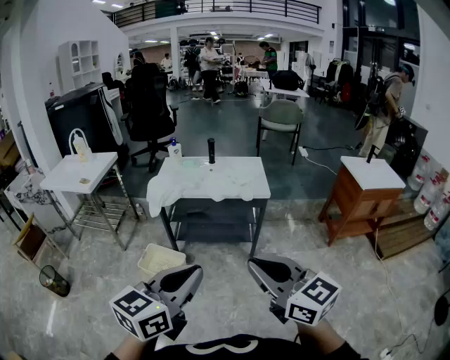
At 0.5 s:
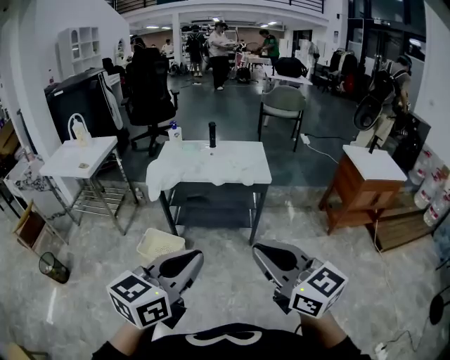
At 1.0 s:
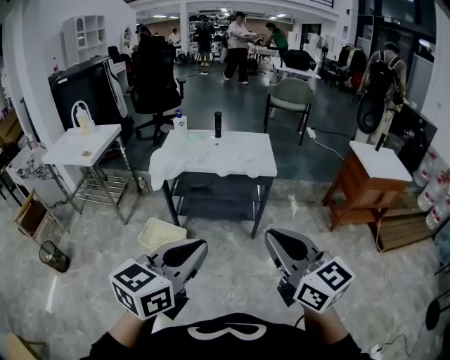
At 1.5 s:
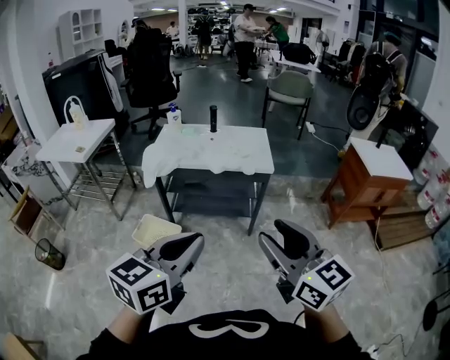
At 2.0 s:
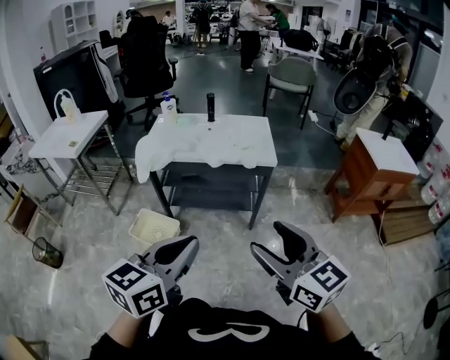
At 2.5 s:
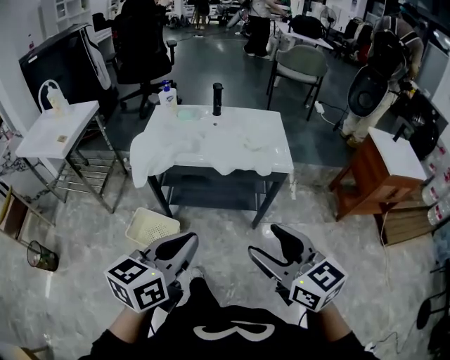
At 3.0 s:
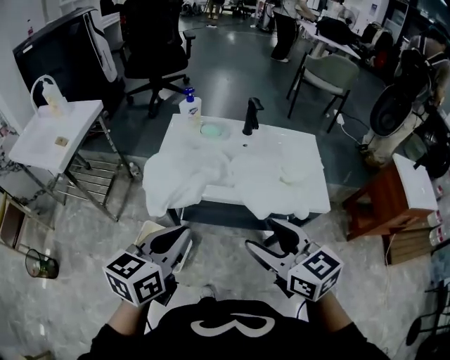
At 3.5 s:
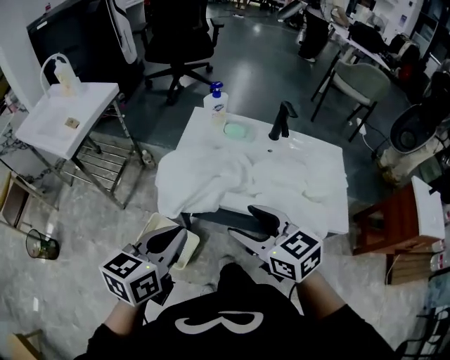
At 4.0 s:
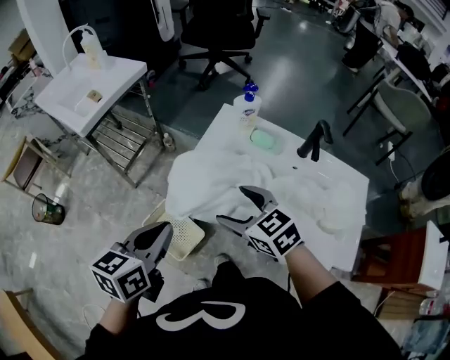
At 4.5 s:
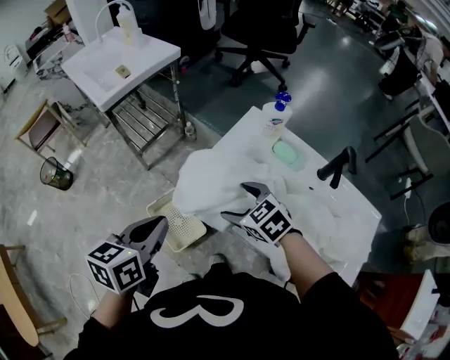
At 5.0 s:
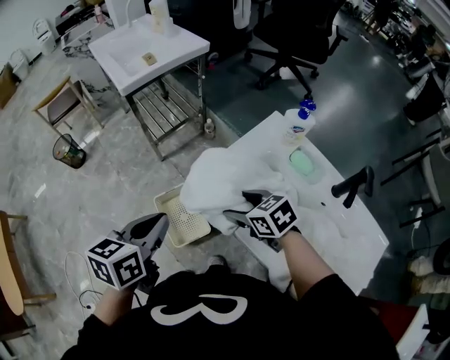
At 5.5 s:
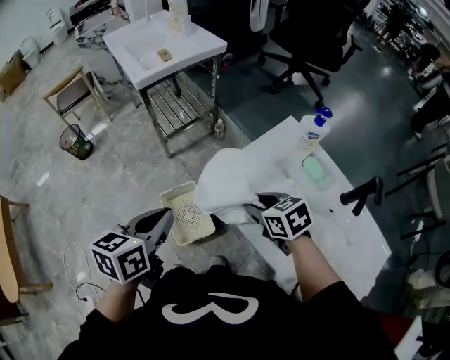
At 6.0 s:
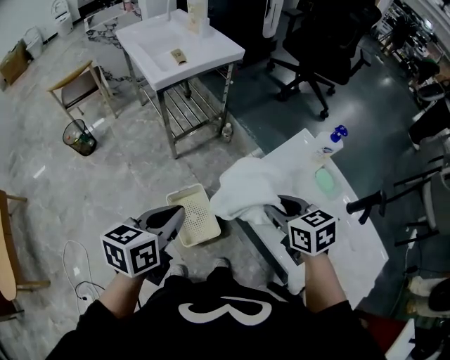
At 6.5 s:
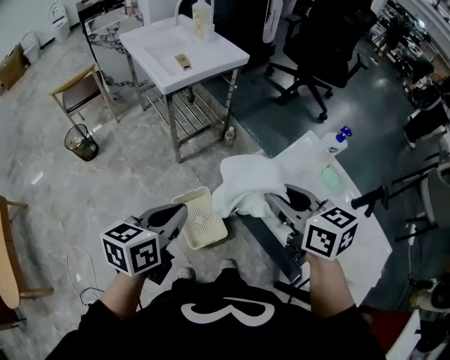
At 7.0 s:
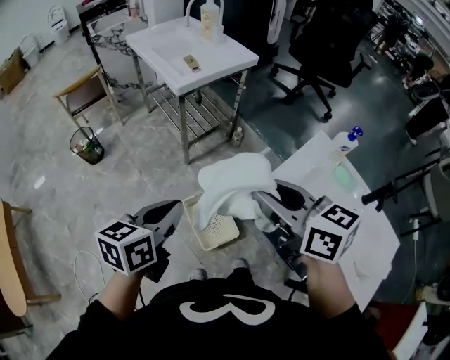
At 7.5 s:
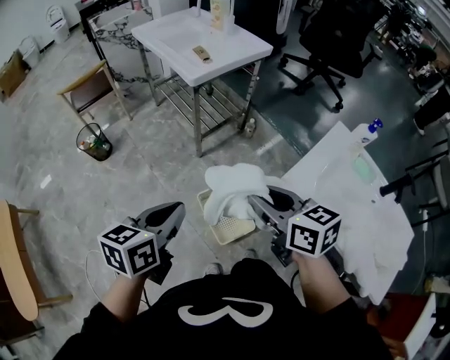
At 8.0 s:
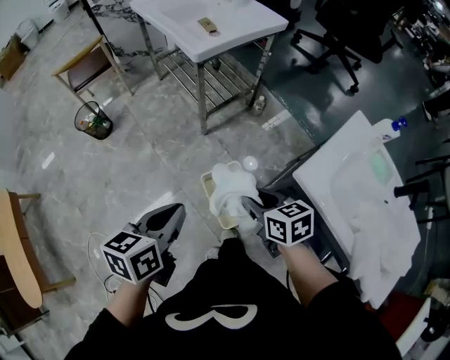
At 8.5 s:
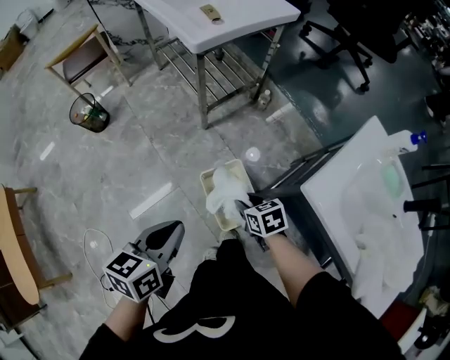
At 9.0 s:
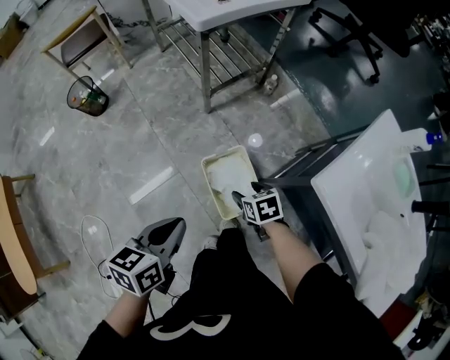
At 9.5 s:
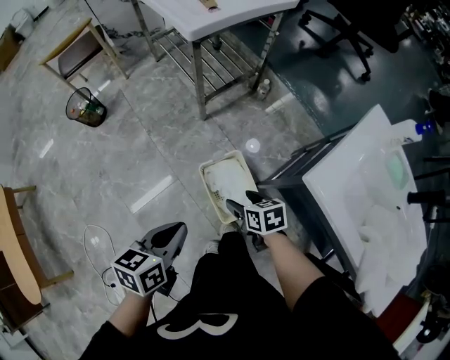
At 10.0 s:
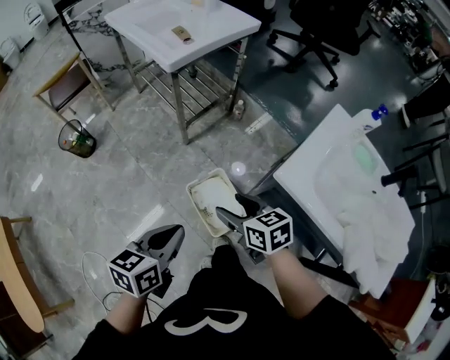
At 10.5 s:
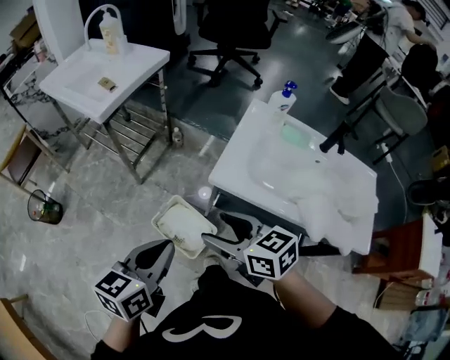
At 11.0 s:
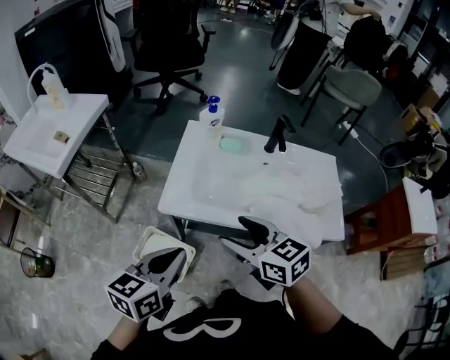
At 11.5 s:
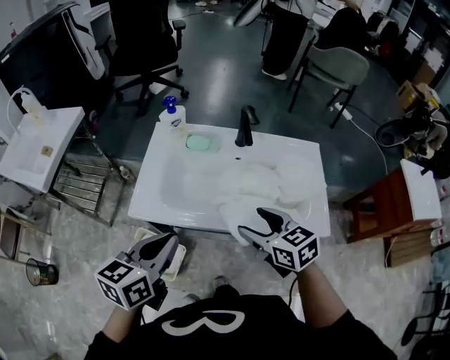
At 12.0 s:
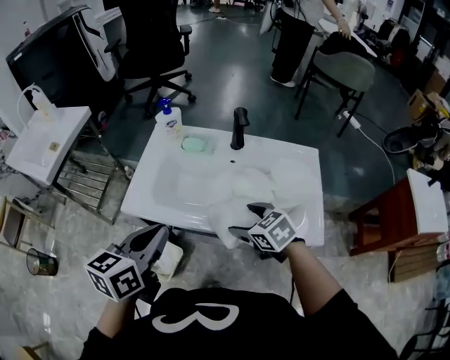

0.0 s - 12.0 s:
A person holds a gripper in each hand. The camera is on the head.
0.0 s - 2.0 s: The right gripper travels forward, downward and to the right by about 15 cm, and opens up, while the left gripper shifts roughly 15 cm forward and downward.
2.0 s - 4.0 s: The pair of grippers is taken about 60 cm. The right gripper rotates approximately 50 degrees; the left gripper swivels roughly 30 degrees.
4.0 s - 6.0 s: The right gripper moves some 10 cm downward and comes back, and closes up. Meanwhile the left gripper changes place by approximately 10 cm, and rotates about 20 degrees.
6.0 s - 8.0 s: The right gripper is displaced to the left and downward by about 25 cm, while the left gripper travels to the left by some 20 cm.
8.0 s - 10.0 s: The right gripper travels downward and back again, some 20 cm each way, and opens its fingers. The left gripper reaches roughly 10 cm downward, then returns.
10.0 s - 12.0 s: The left gripper ends up some 40 cm from where it was, and changes its angle by roughly 30 degrees, while the right gripper shifts by about 50 cm, and rotates approximately 30 degrees.

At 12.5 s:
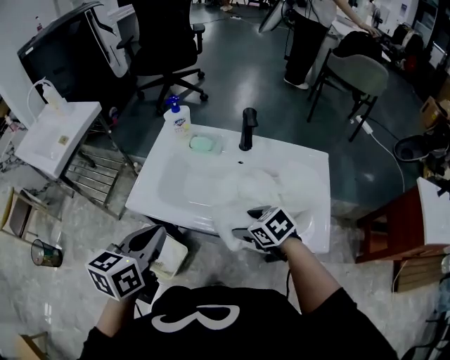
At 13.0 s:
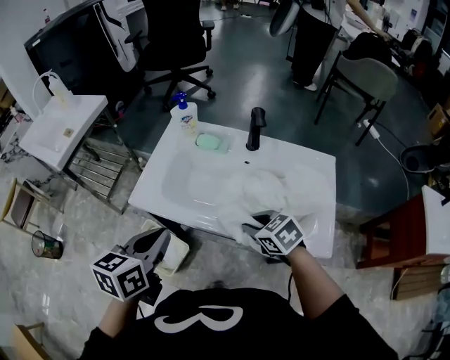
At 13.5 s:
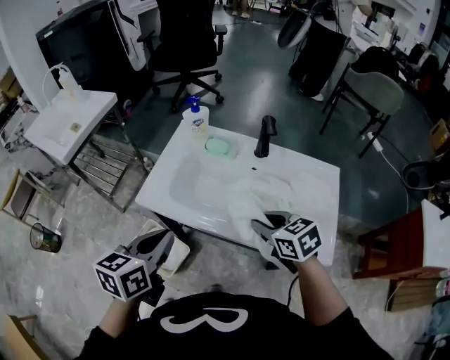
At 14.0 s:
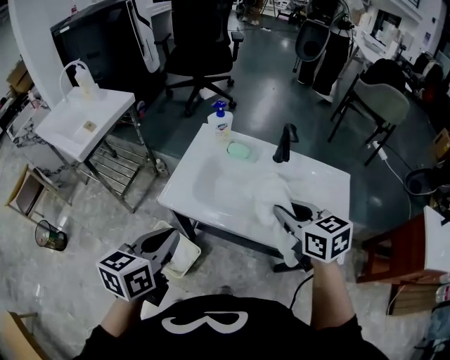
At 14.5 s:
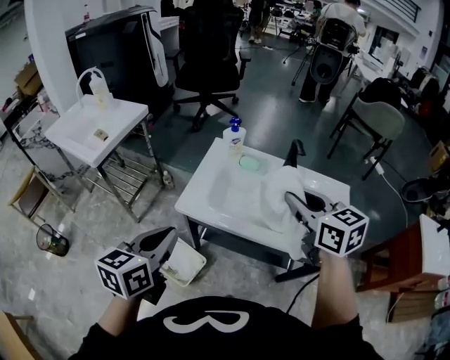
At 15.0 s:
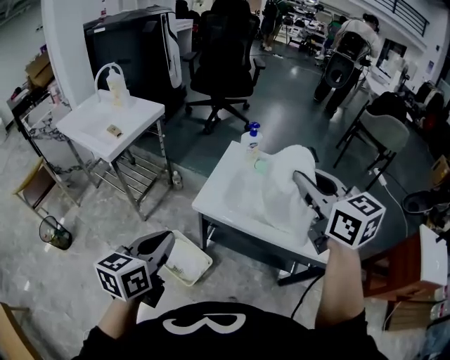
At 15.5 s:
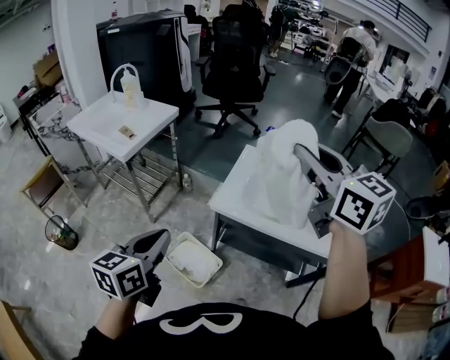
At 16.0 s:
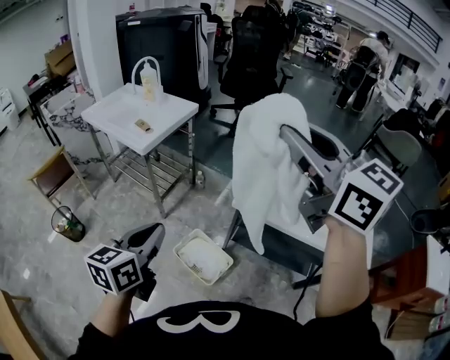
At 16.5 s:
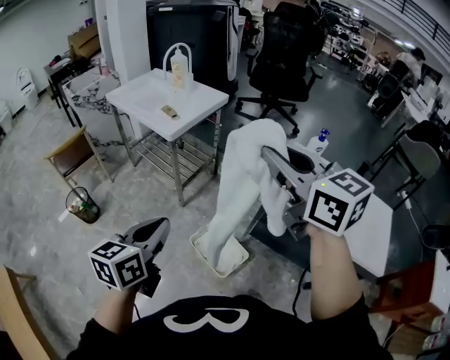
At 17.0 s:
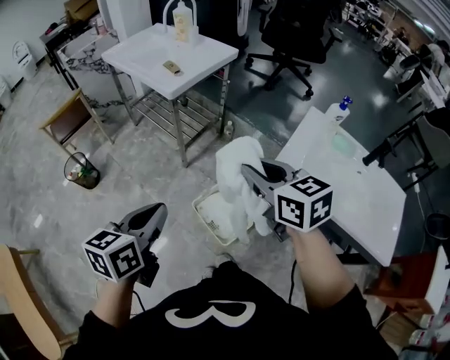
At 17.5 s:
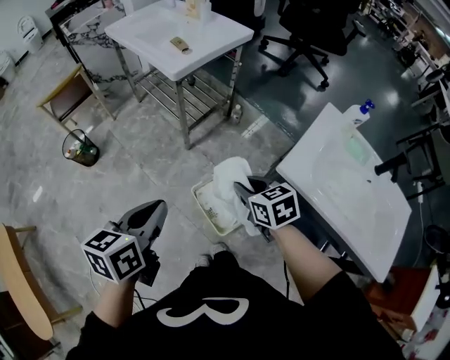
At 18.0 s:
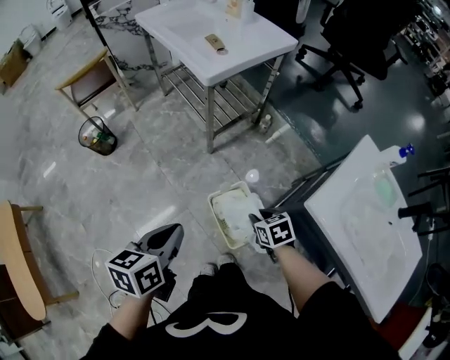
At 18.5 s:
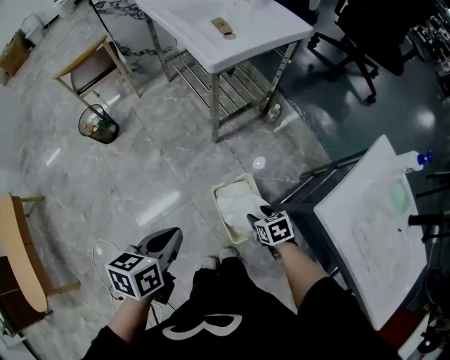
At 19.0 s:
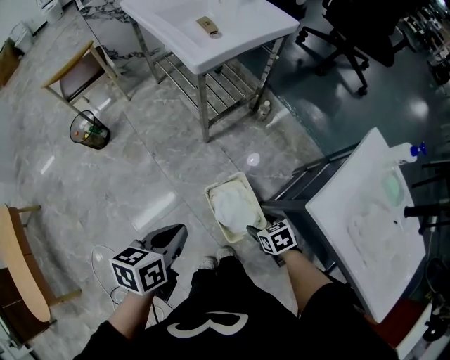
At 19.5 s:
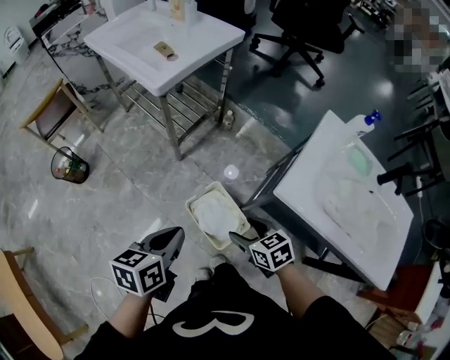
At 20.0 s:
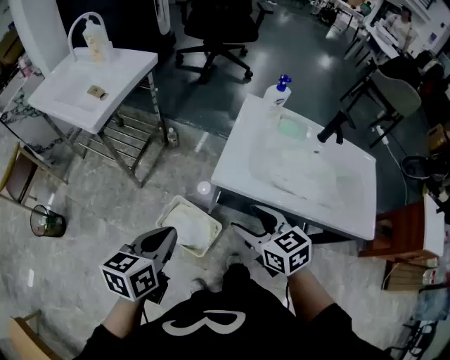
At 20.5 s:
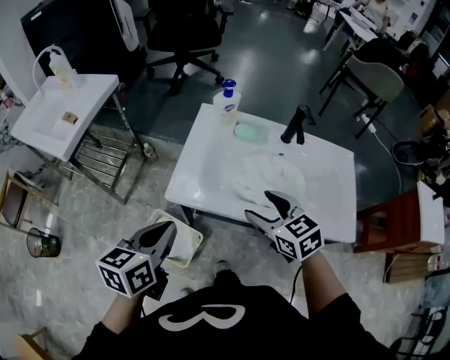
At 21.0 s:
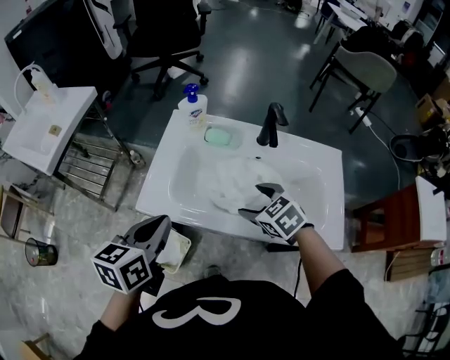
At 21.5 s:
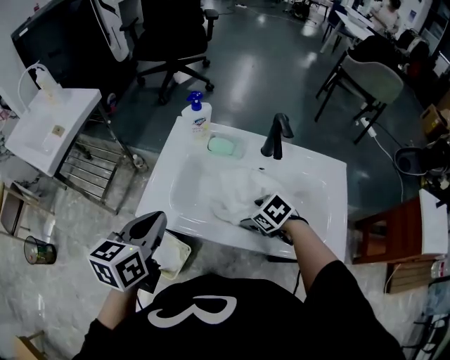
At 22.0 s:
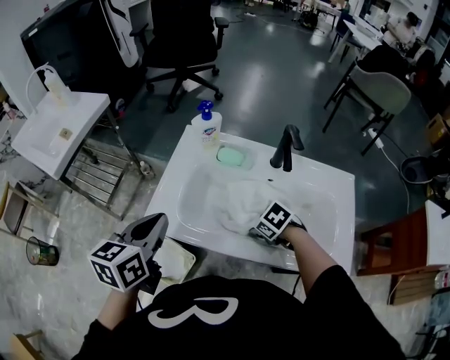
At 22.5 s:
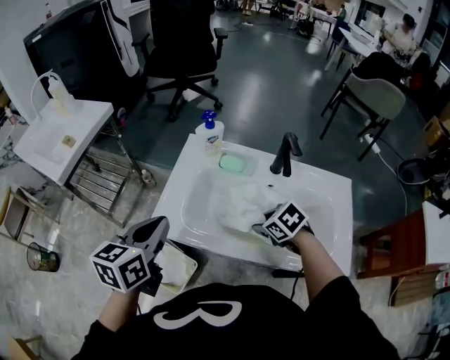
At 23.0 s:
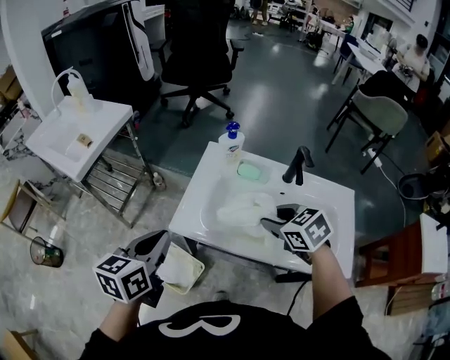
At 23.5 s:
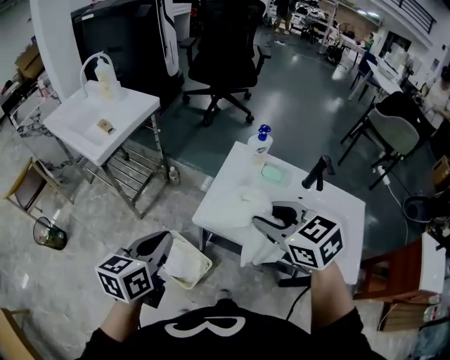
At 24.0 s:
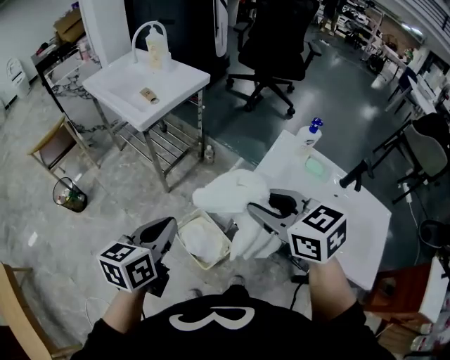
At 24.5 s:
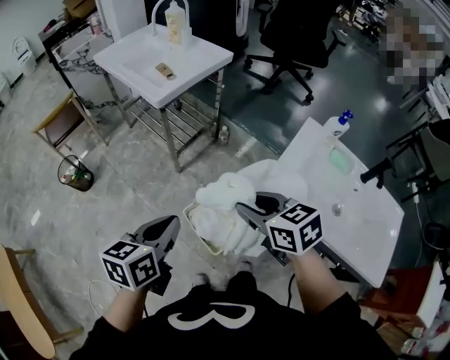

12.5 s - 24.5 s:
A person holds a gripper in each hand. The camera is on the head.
12.5 s - 14.5 s: The left gripper shifts some 15 cm to the left and upward; the right gripper heads upward, covering about 30 cm, tilts its fingers some 30 degrees upward, and closes its fingers.
14.5 s - 16.5 s: The two grippers go approximately 35 cm to the left. The right gripper turns by some 30 degrees.
16.5 s - 18.5 s: The right gripper goes about 60 cm downward, and angles its fingers downward, by roughly 60 degrees, while the left gripper moves downward, some 25 cm, and swivels approximately 30 degrees.
18.5 s - 20.5 s: The right gripper shifts by some 50 cm, and rotates roughly 40 degrees. Meanwhile the left gripper ends up about 35 cm from where it was, and turns by roughly 40 degrees.
20.5 s - 22.5 s: The left gripper ends up roughly 10 cm from where it was. The right gripper ends up approximately 15 cm from where it was, rotates roughly 30 degrees, and closes its fingers.
22.5 s - 24.5 s: Both grippers travel together to the left, some 40 cm. The left gripper changes its angle by about 20 degrees, while the right gripper turns by some 30 degrees.

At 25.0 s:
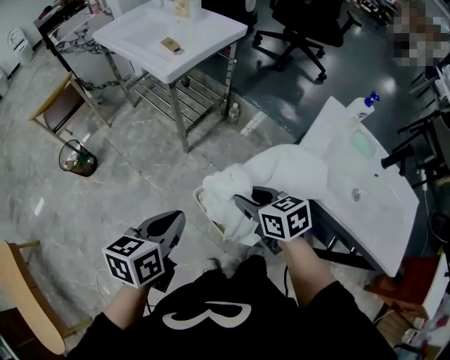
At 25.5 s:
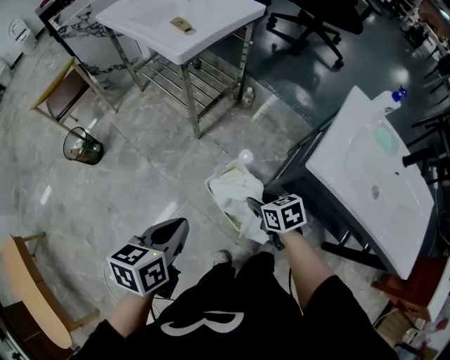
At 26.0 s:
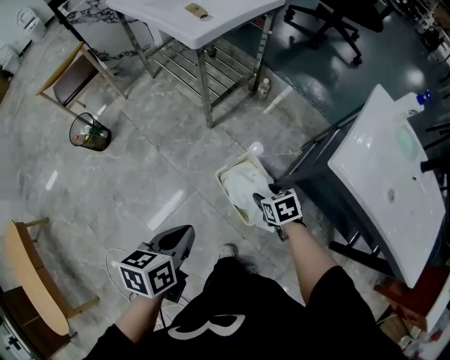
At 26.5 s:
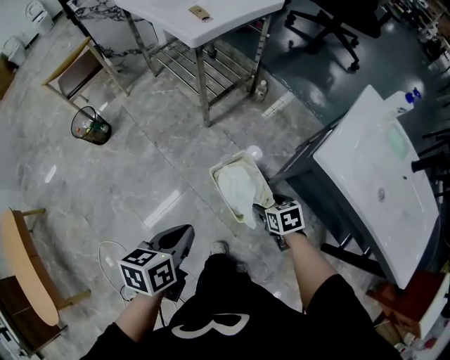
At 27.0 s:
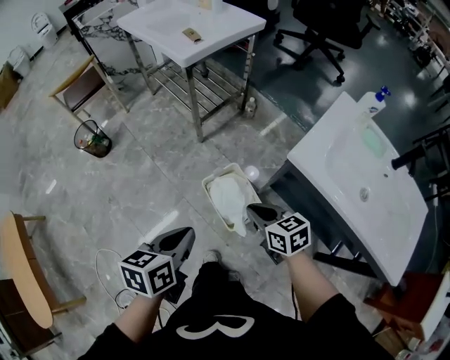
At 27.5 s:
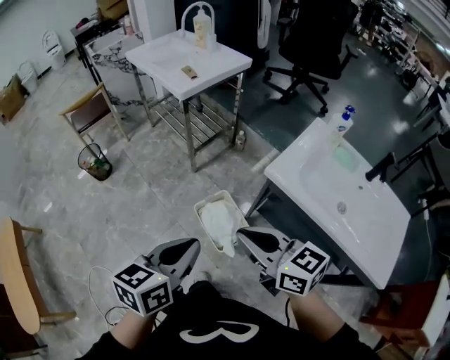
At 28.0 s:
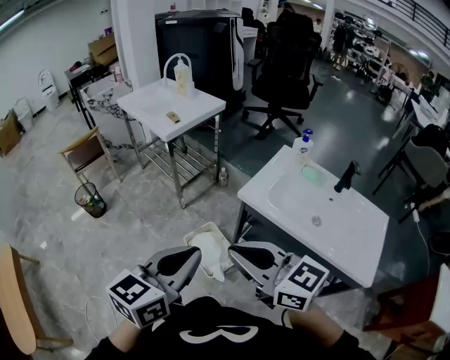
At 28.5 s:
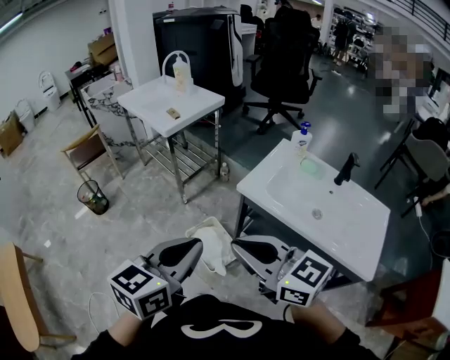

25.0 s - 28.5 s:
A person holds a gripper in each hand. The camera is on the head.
25.0 s - 27.0 s: The grippers both shift backward by about 10 cm. The right gripper goes downward and returns, some 25 cm each way, and opens, then closes once more.
27.0 s - 28.5 s: The right gripper heads upward and backward, covering about 40 cm, and angles its fingers upward, by some 30 degrees. Meanwhile the left gripper travels upward, backward and to the right by roughly 30 cm, and rotates some 40 degrees.
